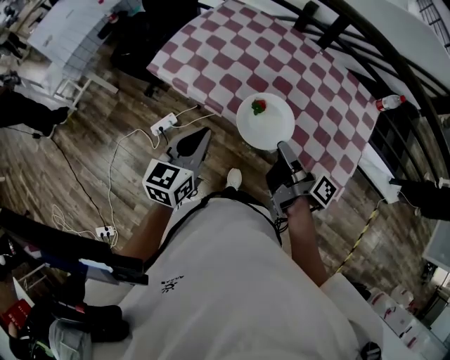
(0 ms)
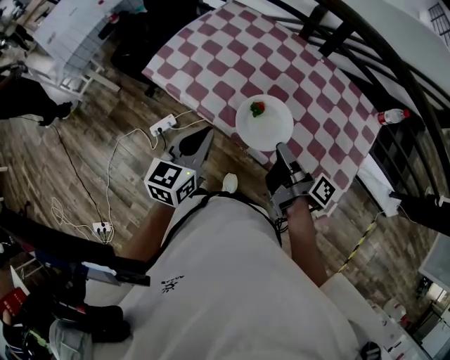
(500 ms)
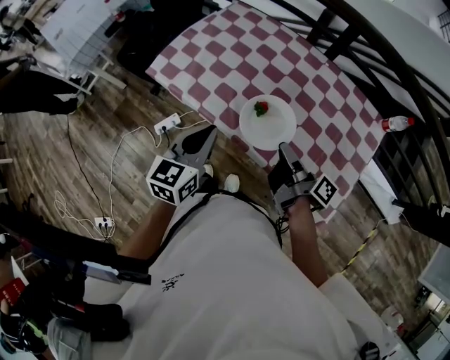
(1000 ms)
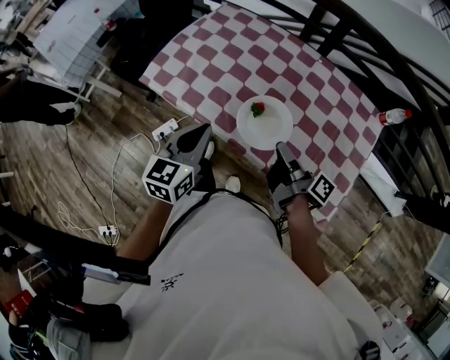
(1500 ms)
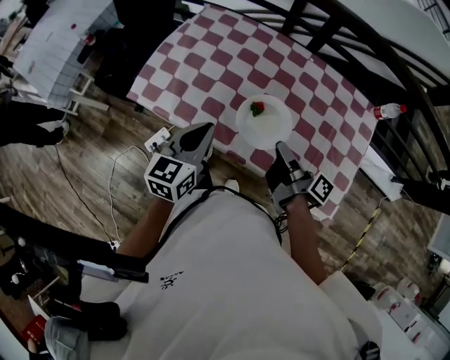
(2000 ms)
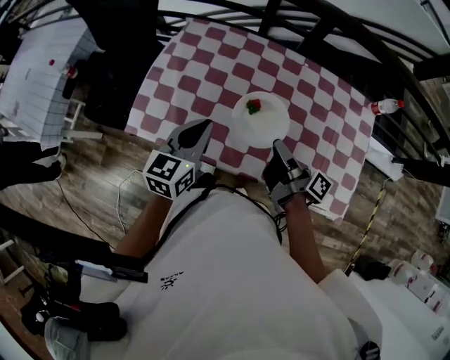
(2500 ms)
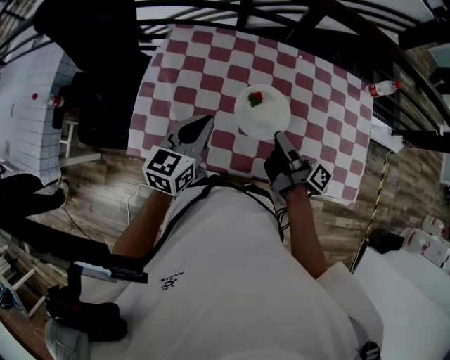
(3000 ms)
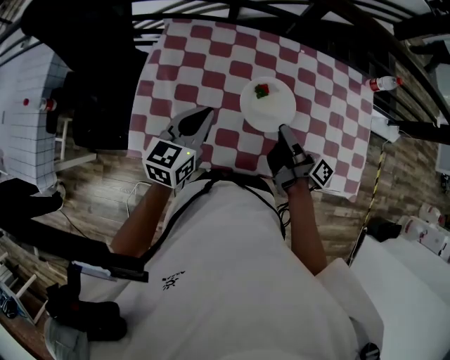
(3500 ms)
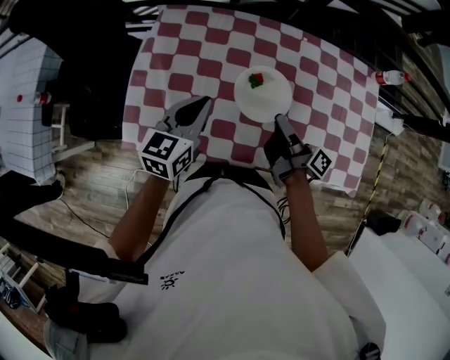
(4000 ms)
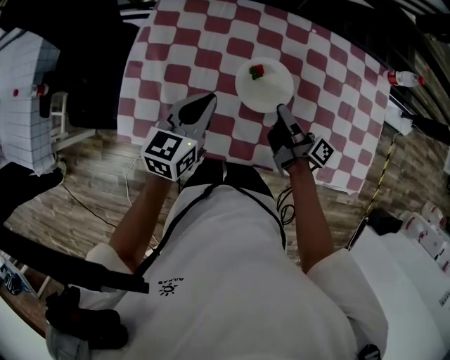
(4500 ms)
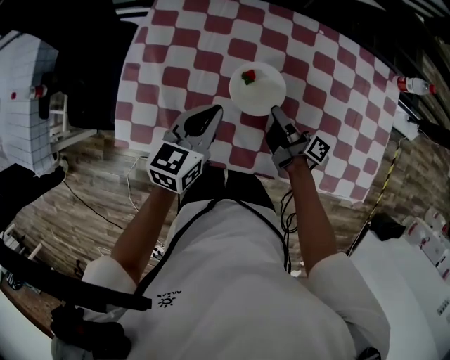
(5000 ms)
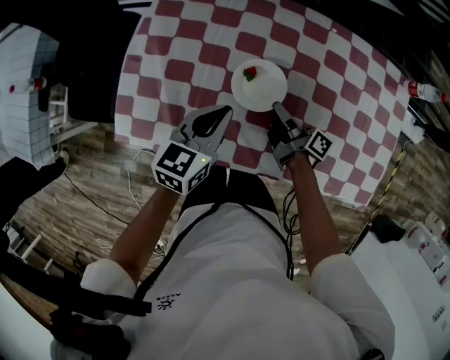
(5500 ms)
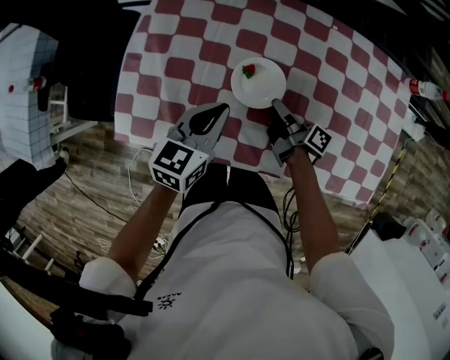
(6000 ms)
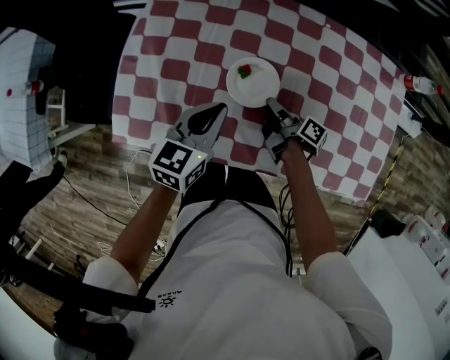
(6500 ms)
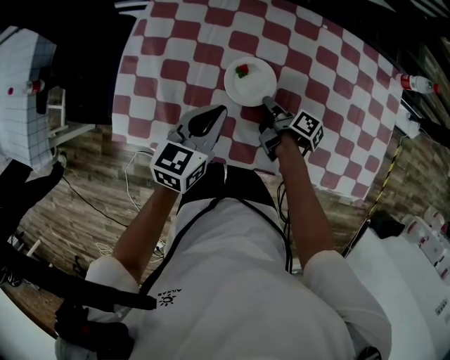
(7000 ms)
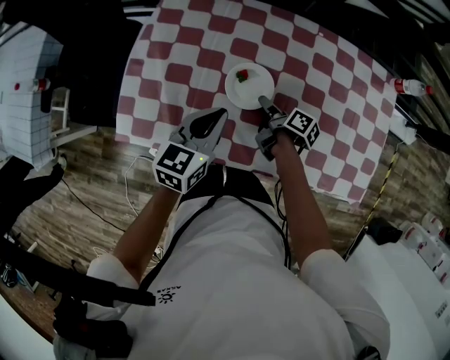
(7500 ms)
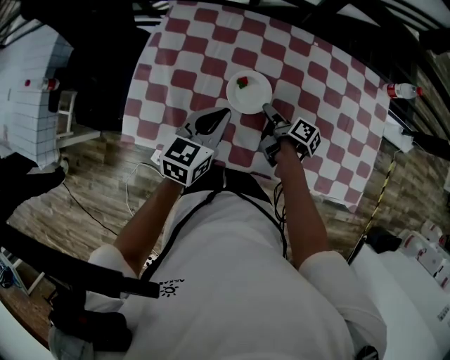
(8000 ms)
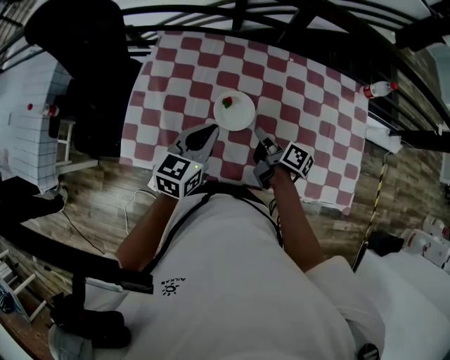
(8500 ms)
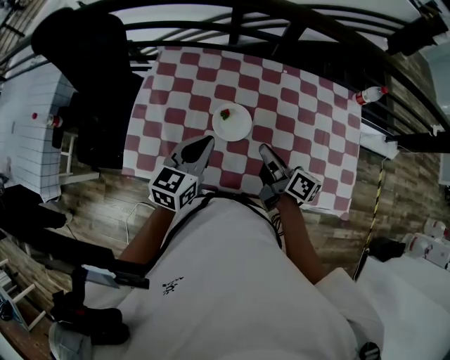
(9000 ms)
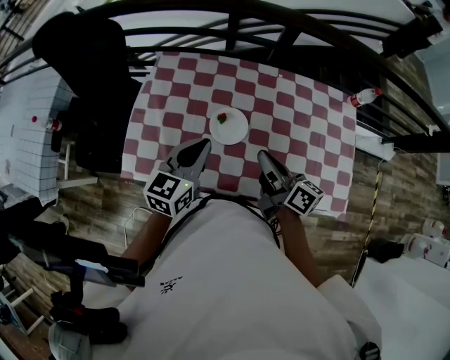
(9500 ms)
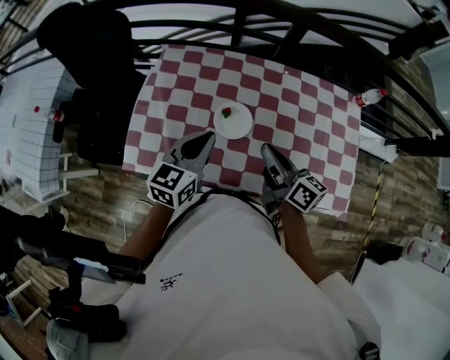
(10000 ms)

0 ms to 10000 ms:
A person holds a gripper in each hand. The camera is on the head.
0 ms to 2000 ms: The left gripper ends up about 15 cm from where it was.
2000 ms to 4000 ms: The left gripper moves about 25 cm, and rotates some 20 degrees.
4000 ms to 6000 ms: The left gripper heads downward, covering some 10 cm.
6000 ms to 8000 ms: The left gripper shifts by roughly 5 cm.
8000 ms to 10000 ms: The left gripper goes some 10 cm upward.

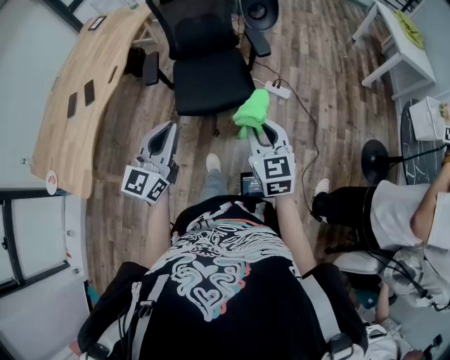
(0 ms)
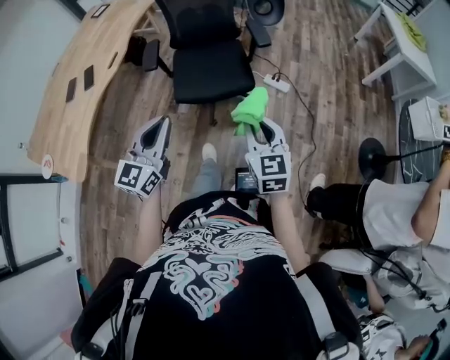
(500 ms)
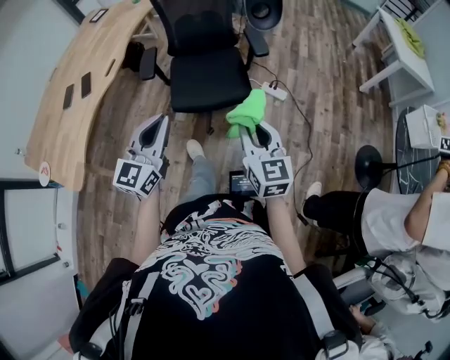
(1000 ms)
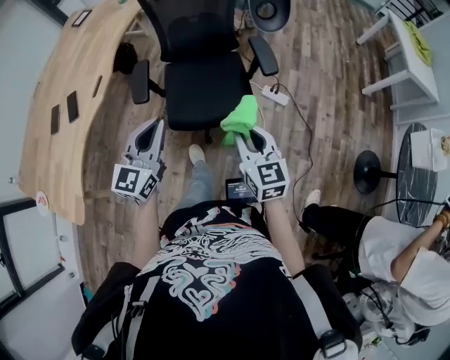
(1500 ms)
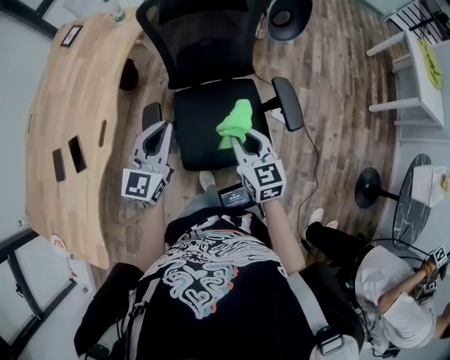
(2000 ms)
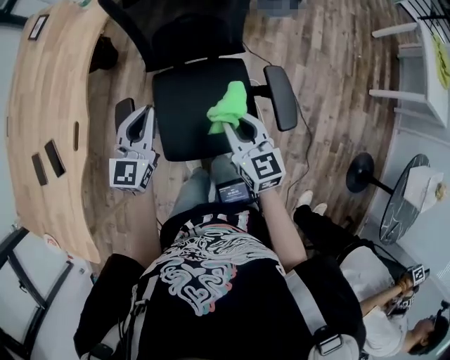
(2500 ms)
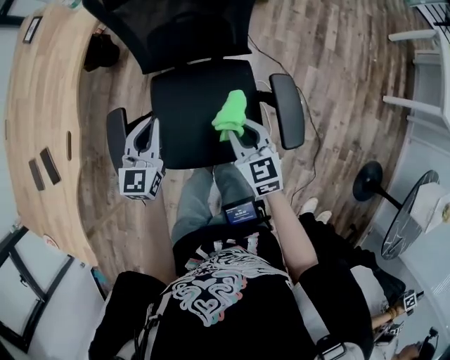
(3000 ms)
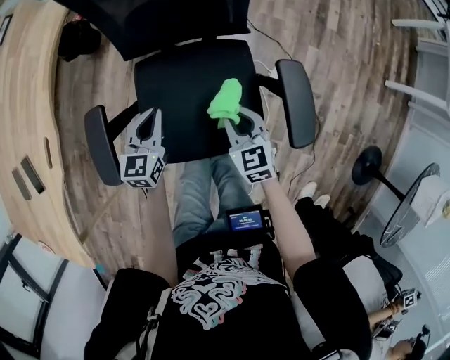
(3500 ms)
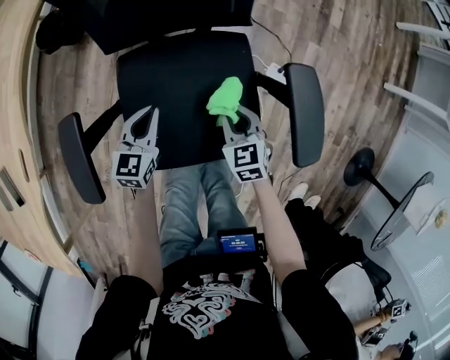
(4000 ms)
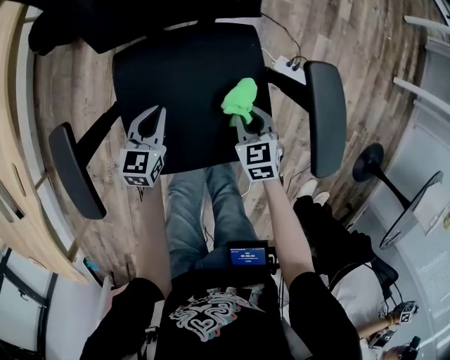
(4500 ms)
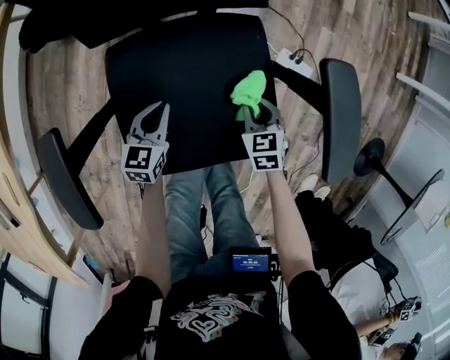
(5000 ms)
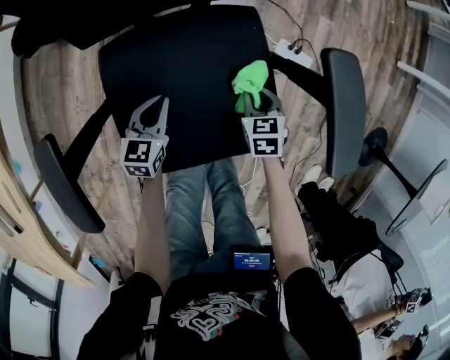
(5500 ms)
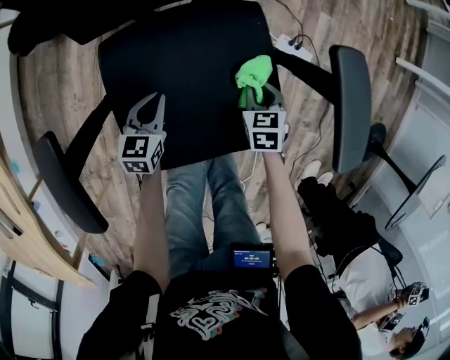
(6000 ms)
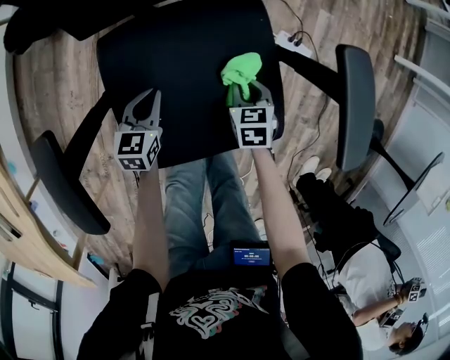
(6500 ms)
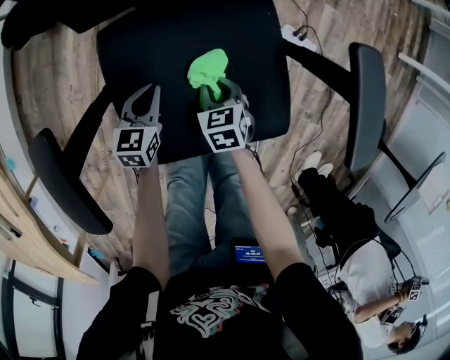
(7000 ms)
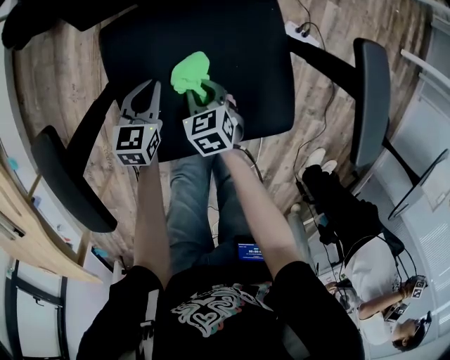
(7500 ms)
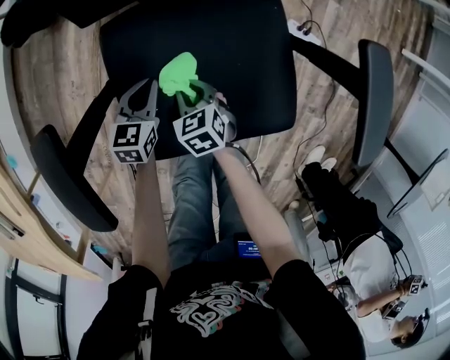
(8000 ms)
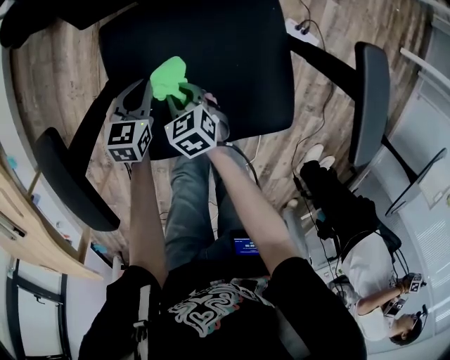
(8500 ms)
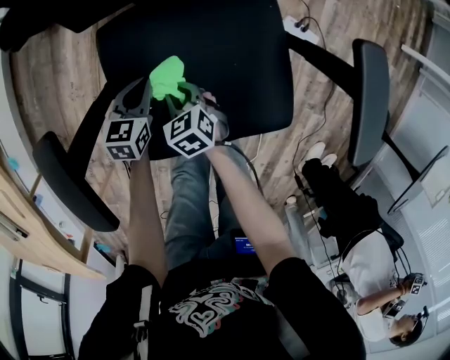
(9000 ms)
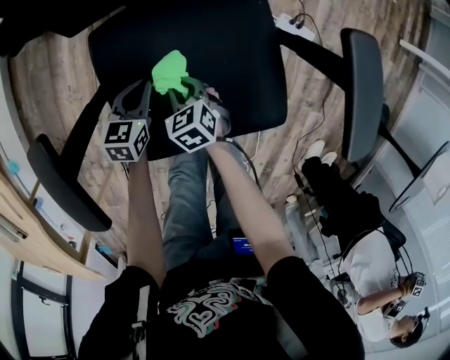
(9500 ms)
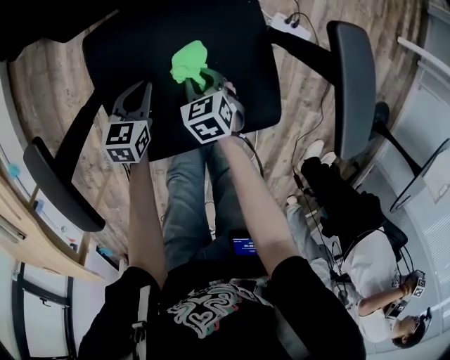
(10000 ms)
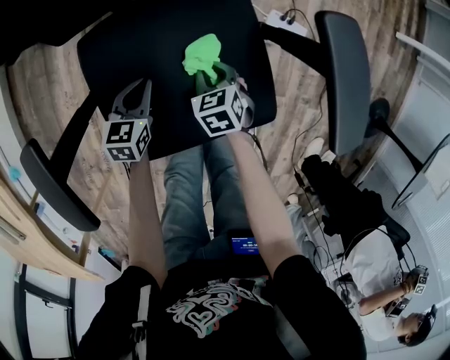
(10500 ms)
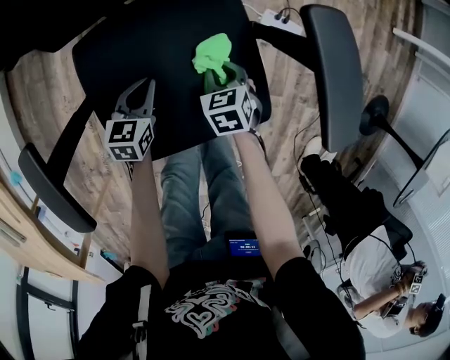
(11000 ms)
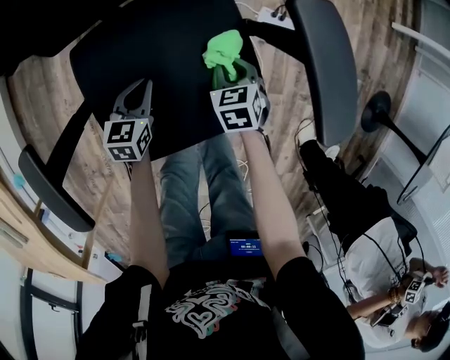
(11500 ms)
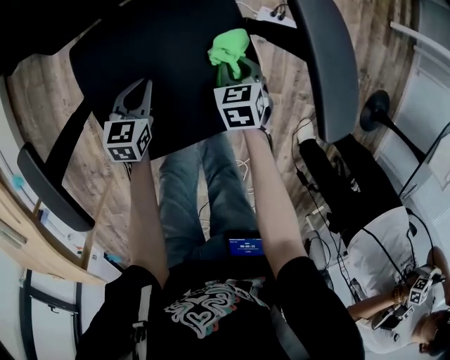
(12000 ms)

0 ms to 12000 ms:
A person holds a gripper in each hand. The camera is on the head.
0 ms to 2000 ms: The pair of grippers is taken forward, some 50 cm.
2000 ms to 4000 ms: The left gripper moves downward, about 35 cm, and turns by roughly 30 degrees. The right gripper heads downward and to the right, covering approximately 35 cm, and rotates approximately 30 degrees.
4000 ms to 6000 ms: The left gripper is displaced downward by roughly 15 cm. Meanwhile the right gripper travels downward and to the right by some 15 cm, and swivels about 20 degrees.
6000 ms to 8000 ms: The left gripper moves approximately 5 cm. Meanwhile the right gripper travels to the left by approximately 25 cm, and rotates about 20 degrees.
8000 ms to 10000 ms: The right gripper moves to the right, roughly 10 cm.
10000 ms to 12000 ms: The left gripper moves to the right, about 5 cm, while the right gripper shifts some 15 cm to the right.

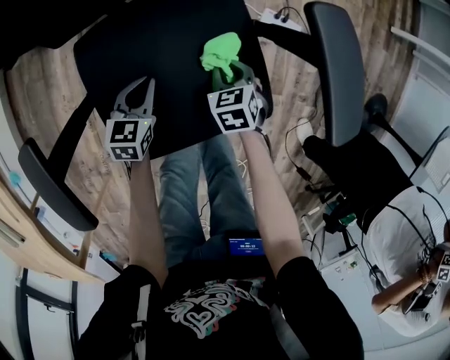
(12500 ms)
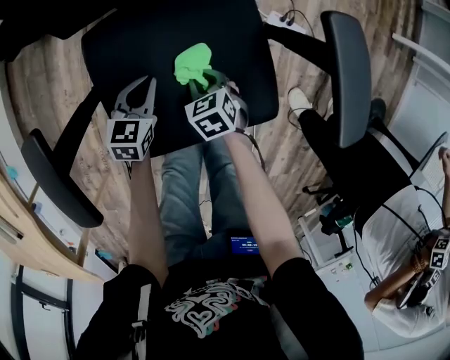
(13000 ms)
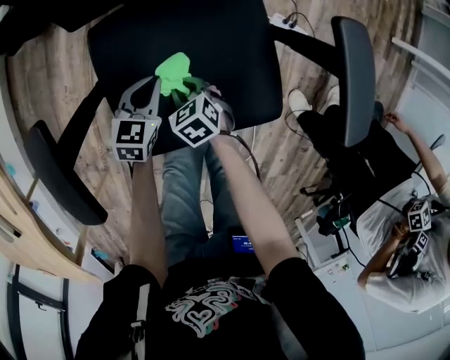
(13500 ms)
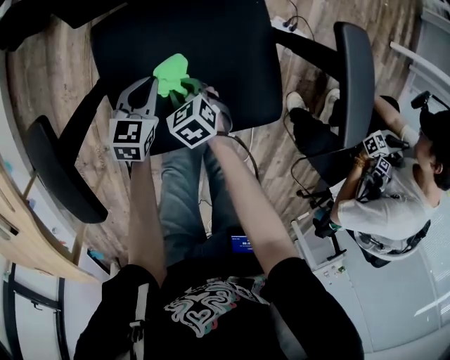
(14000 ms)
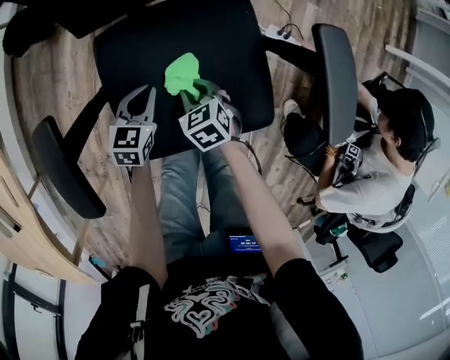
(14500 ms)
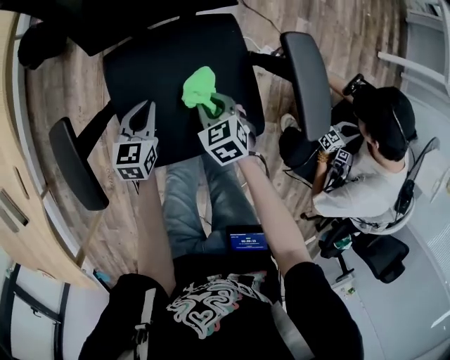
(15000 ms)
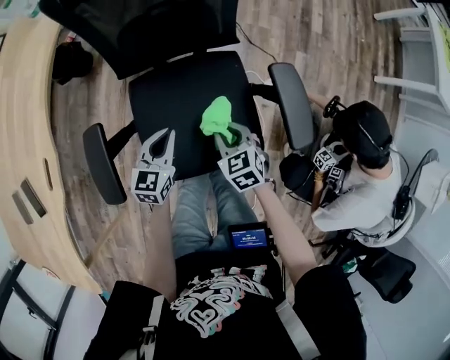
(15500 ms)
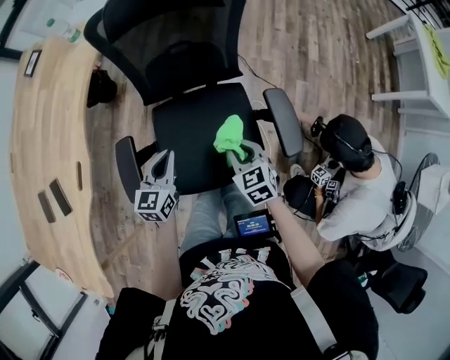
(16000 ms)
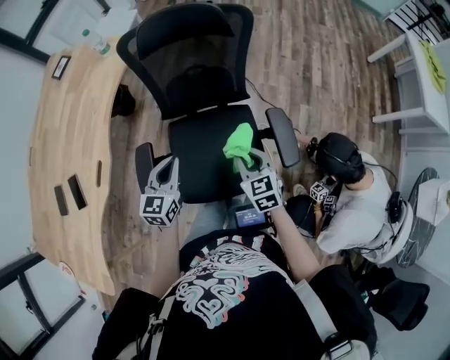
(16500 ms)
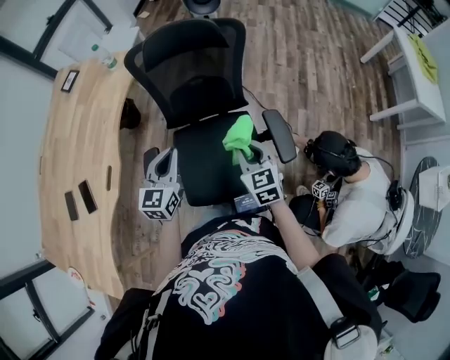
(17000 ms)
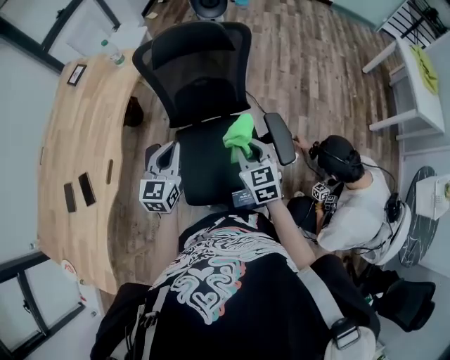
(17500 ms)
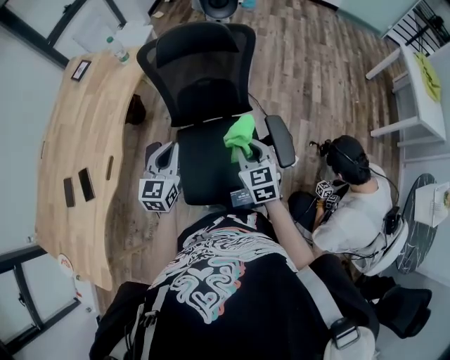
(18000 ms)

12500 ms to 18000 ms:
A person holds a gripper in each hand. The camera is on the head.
12500 ms to 14500 ms: The right gripper shifts some 15 cm to the left. The left gripper shifts by some 5 cm.
14500 ms to 16000 ms: The two grippers go some 30 cm upward. The left gripper changes its angle by approximately 20 degrees.
16000 ms to 18000 ms: The grippers both shift upward by about 20 cm.
